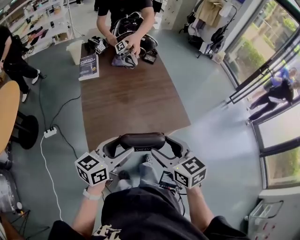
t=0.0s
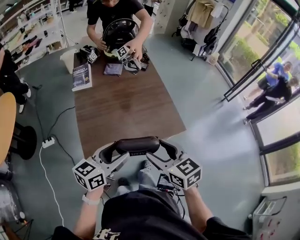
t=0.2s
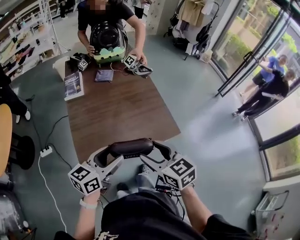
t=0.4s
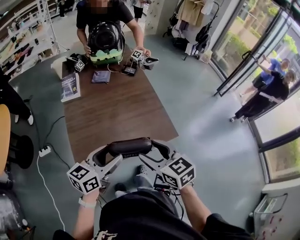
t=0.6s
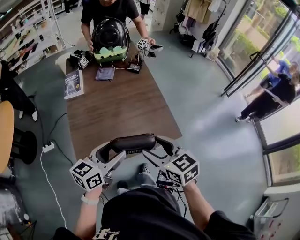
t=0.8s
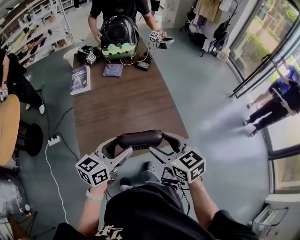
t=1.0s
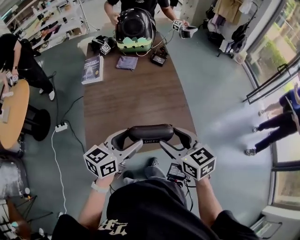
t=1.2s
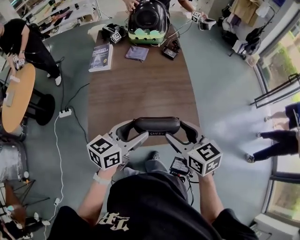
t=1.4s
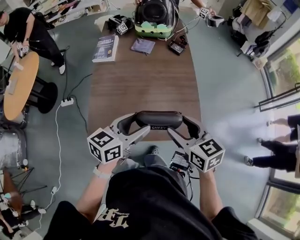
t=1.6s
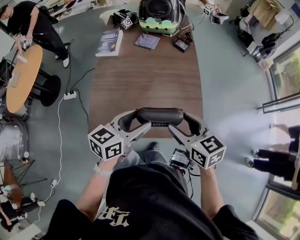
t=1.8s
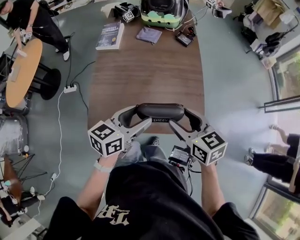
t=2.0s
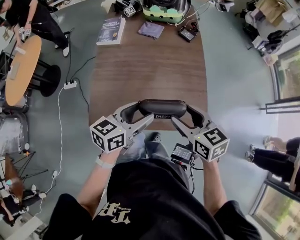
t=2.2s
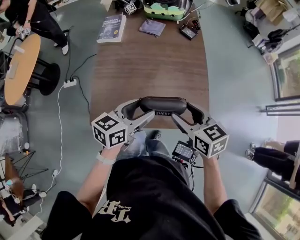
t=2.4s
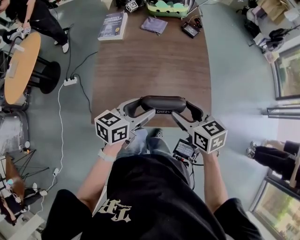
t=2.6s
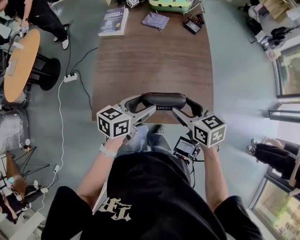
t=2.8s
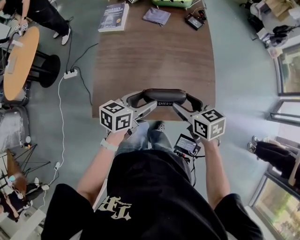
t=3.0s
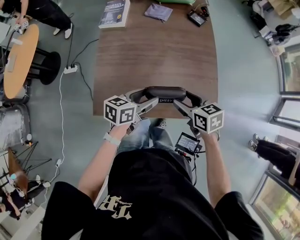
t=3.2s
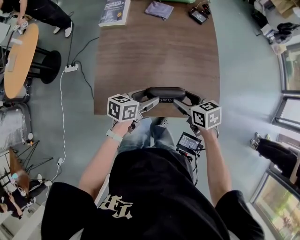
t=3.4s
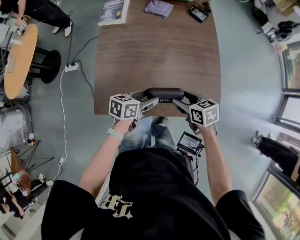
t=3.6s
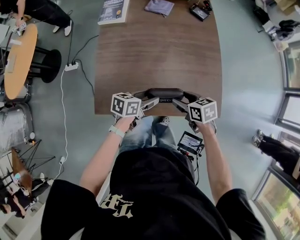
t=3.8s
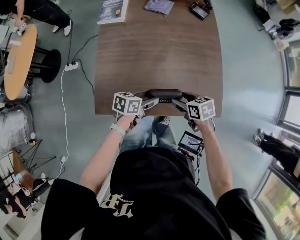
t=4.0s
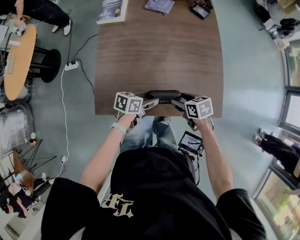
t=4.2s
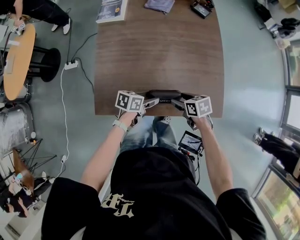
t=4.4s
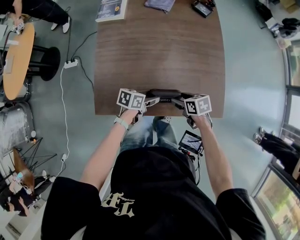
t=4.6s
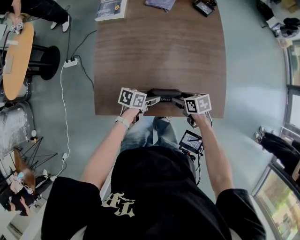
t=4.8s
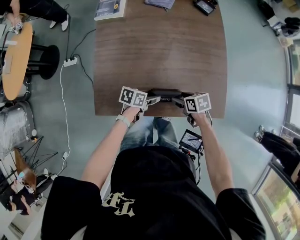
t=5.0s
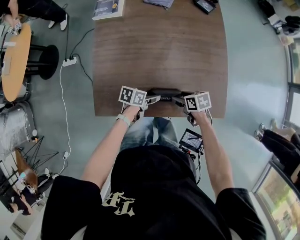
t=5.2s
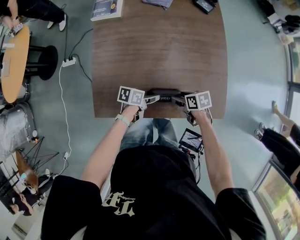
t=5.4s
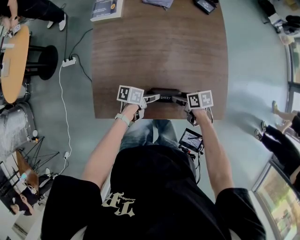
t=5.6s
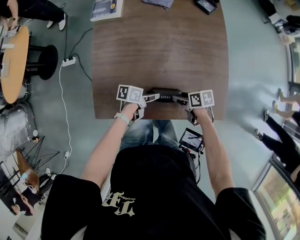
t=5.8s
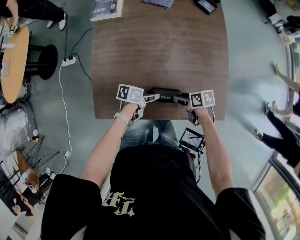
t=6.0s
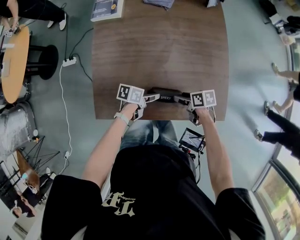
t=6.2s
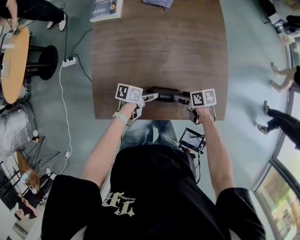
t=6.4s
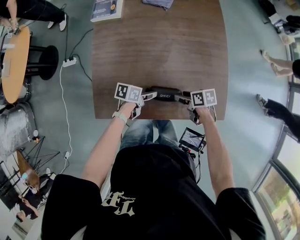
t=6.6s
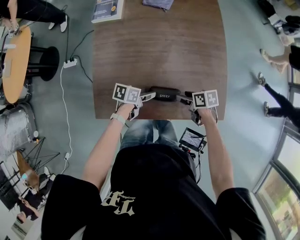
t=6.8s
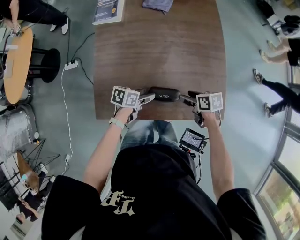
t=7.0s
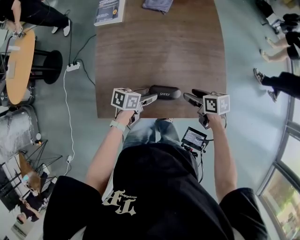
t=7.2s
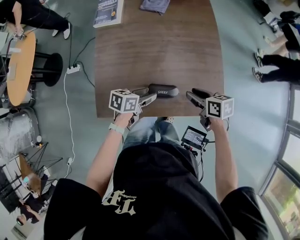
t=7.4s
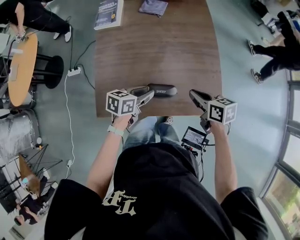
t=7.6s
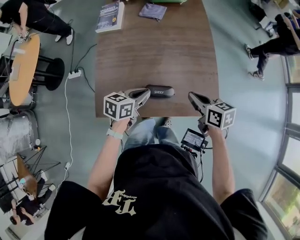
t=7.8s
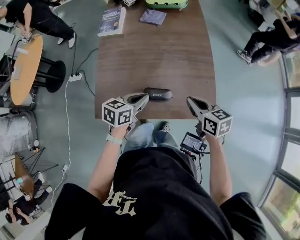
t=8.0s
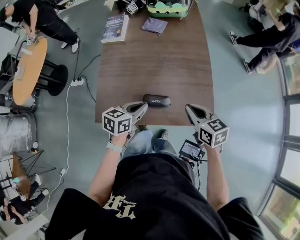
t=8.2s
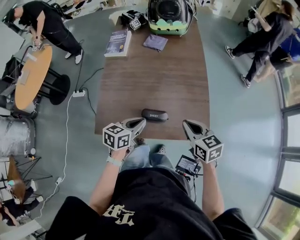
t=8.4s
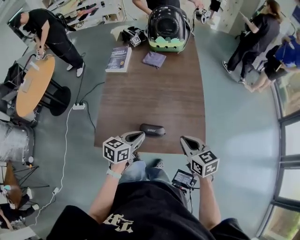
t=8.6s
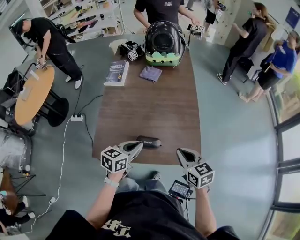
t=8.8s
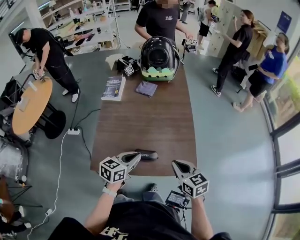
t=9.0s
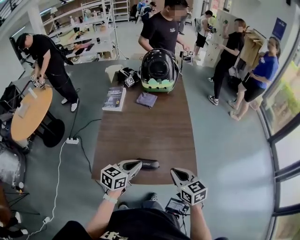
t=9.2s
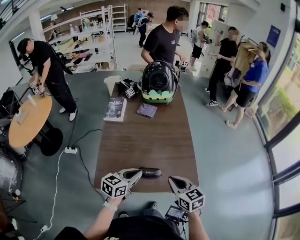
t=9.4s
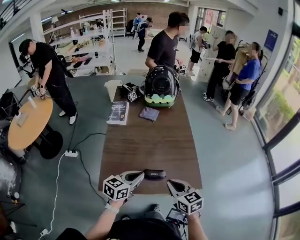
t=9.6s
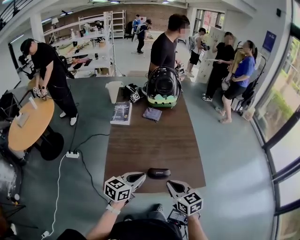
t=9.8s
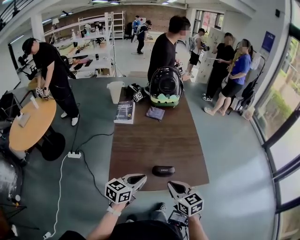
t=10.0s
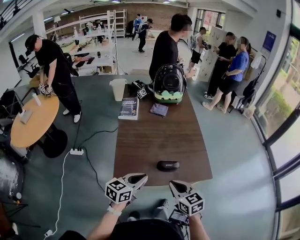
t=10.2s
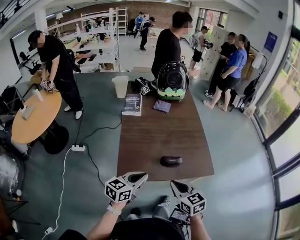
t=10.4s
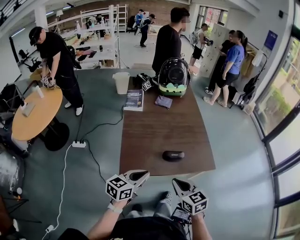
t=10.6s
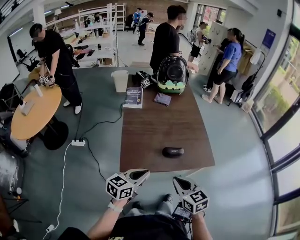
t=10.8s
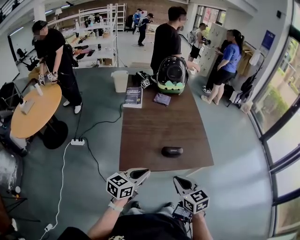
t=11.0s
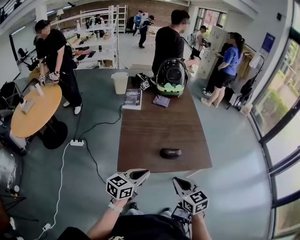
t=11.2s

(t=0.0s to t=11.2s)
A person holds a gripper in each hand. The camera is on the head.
t=0.0s - t=1.6s: The two grippers go about 20 cm forward and to the right.
t=1.6s - t=3.2s: Both grippers travel together downward, about 15 cm.
t=3.2s - t=4.8s: The two grippers go roughly 20 cm downward. The left gripper turns by about 20 degrees; the right gripper rotates roughly 20 degrees.
t=4.8s - t=6.4s: The grippers stay close to where they were, moving slightly.
t=6.4s - t=8.0s: Both grippers travel together upward, about 20 cm. The right gripper changes its angle by roughly 40 degrees, and closes its fingers. Meanwhile the left gripper swivels about 40 degrees, and closes its fingers.
t=8.0s - t=9.6s: The right gripper travels upward, backward and to the left by some 15 cm, while the left gripper moves upward and backward, roughly 15 cm.
t=9.6s - t=11.2s: Both grippers move backward and to the left, some 20 cm.

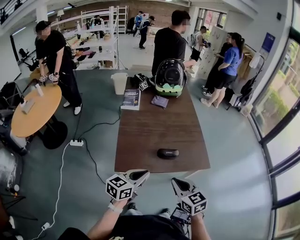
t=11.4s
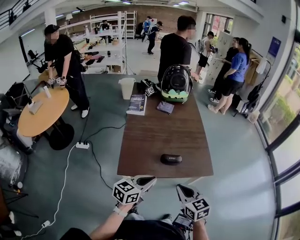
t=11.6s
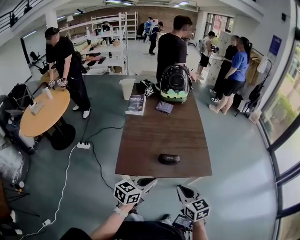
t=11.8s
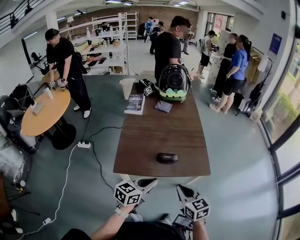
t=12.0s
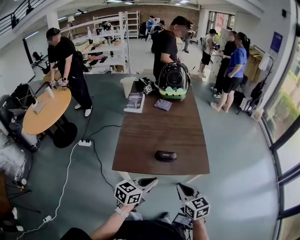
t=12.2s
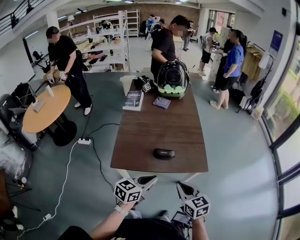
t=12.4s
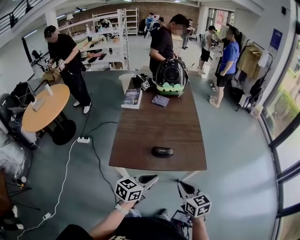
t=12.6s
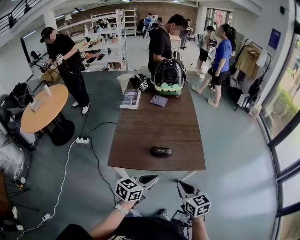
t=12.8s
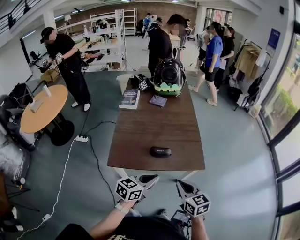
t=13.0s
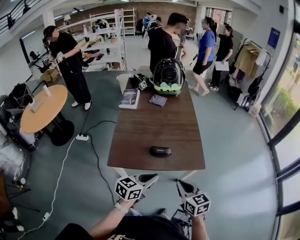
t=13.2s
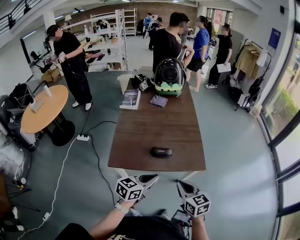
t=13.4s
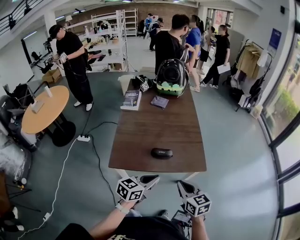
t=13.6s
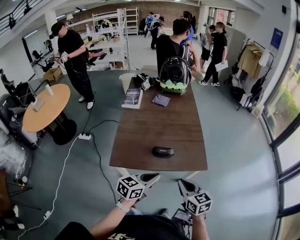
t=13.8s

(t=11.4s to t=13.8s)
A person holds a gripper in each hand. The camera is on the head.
t=11.4s - t=12.6s: The two grippers go roughly 15 cm to the right.
t=12.6s - t=13.8s: Both grippers stay about where they are.

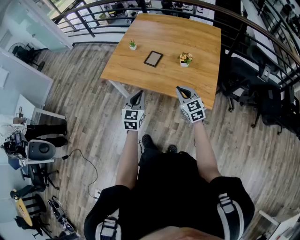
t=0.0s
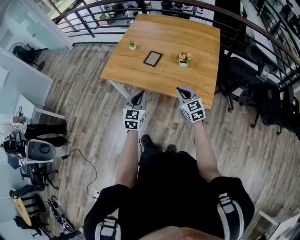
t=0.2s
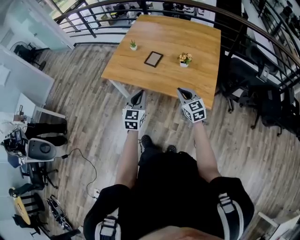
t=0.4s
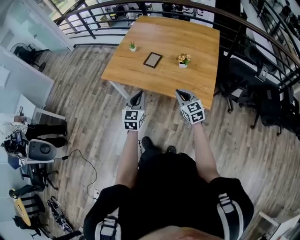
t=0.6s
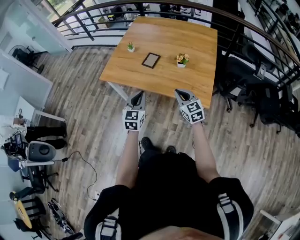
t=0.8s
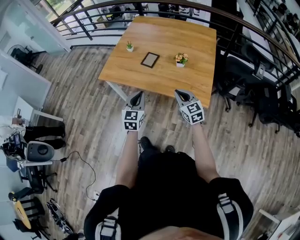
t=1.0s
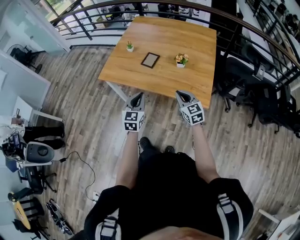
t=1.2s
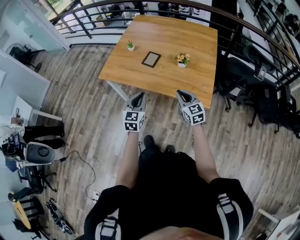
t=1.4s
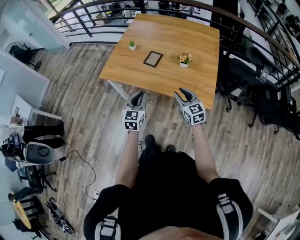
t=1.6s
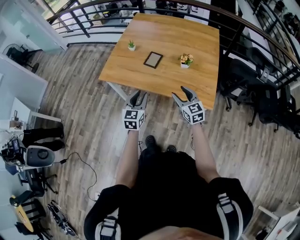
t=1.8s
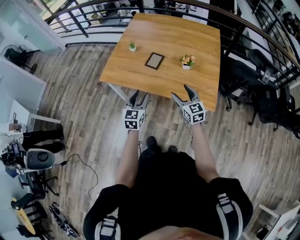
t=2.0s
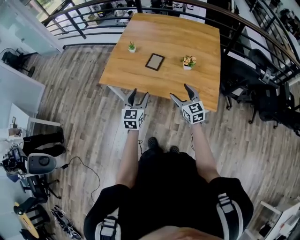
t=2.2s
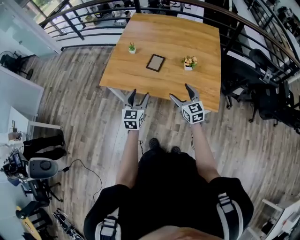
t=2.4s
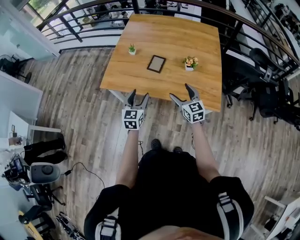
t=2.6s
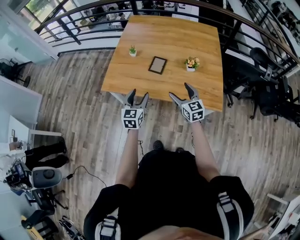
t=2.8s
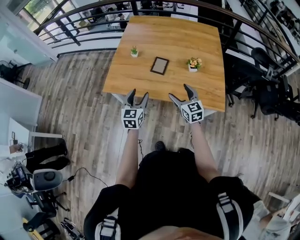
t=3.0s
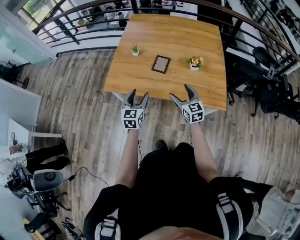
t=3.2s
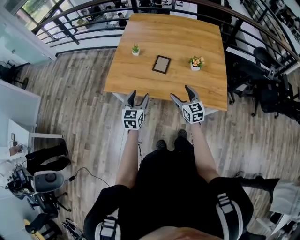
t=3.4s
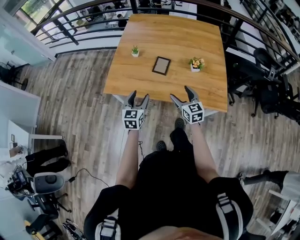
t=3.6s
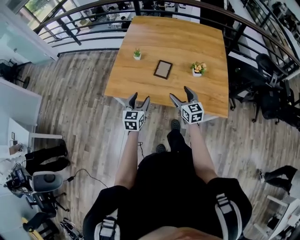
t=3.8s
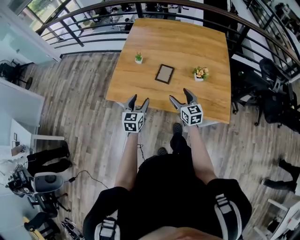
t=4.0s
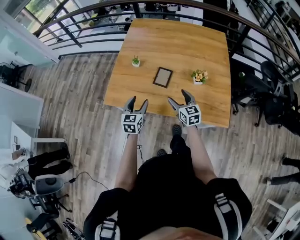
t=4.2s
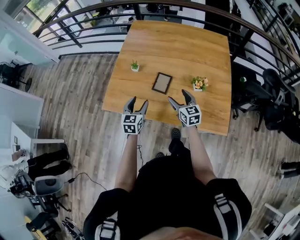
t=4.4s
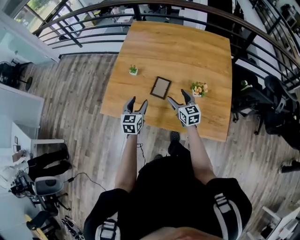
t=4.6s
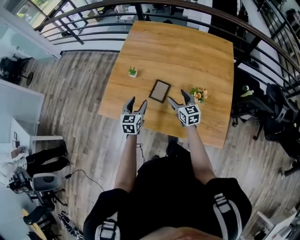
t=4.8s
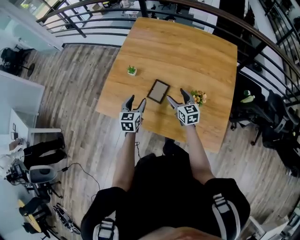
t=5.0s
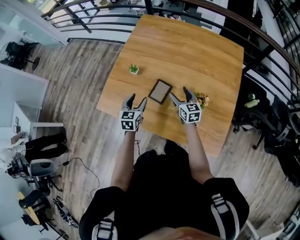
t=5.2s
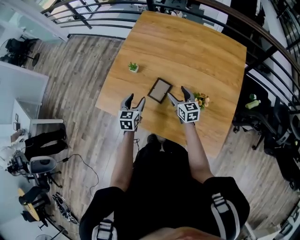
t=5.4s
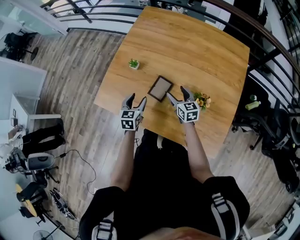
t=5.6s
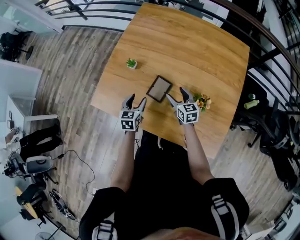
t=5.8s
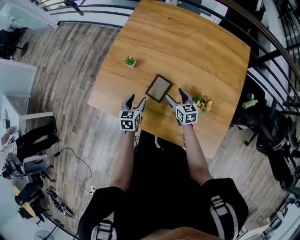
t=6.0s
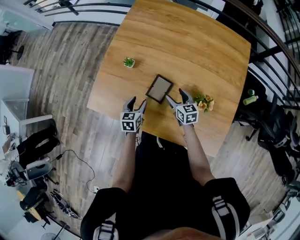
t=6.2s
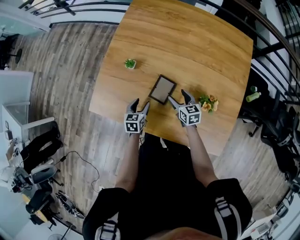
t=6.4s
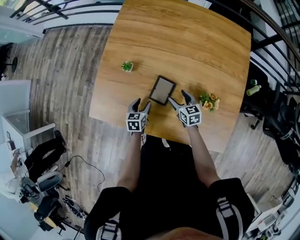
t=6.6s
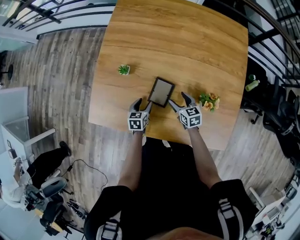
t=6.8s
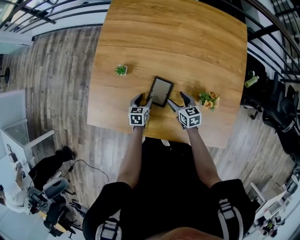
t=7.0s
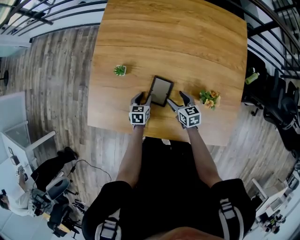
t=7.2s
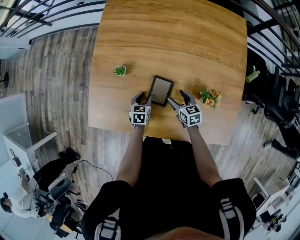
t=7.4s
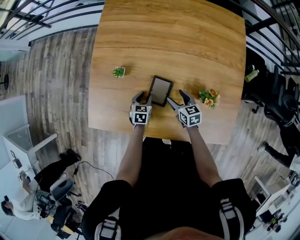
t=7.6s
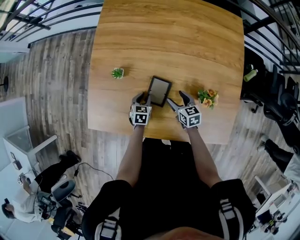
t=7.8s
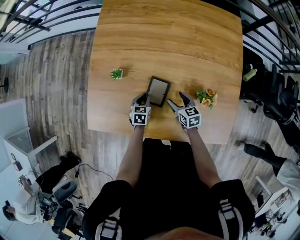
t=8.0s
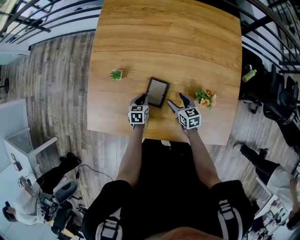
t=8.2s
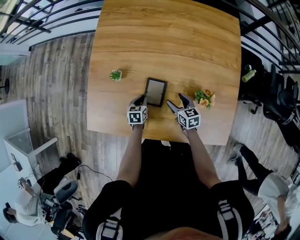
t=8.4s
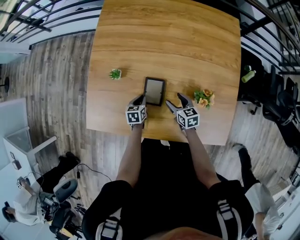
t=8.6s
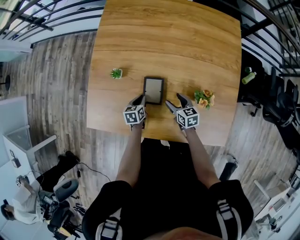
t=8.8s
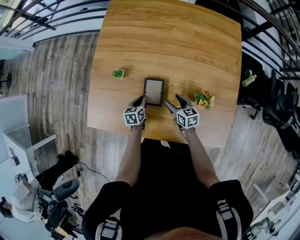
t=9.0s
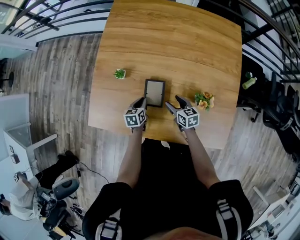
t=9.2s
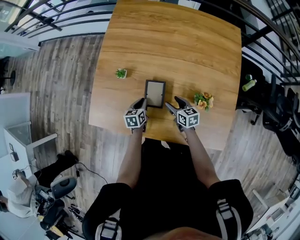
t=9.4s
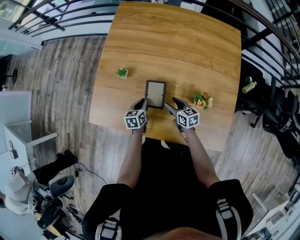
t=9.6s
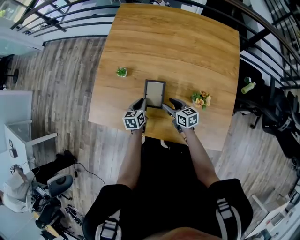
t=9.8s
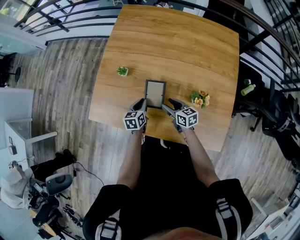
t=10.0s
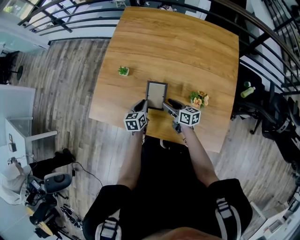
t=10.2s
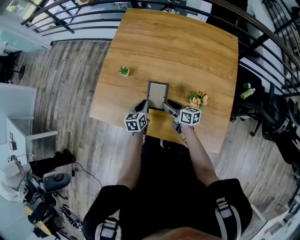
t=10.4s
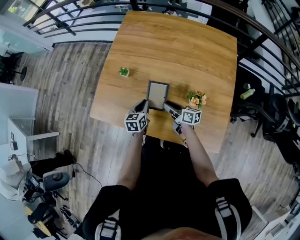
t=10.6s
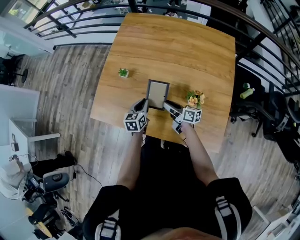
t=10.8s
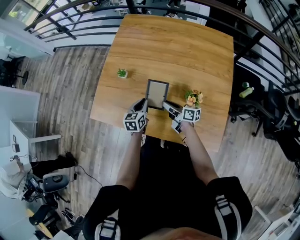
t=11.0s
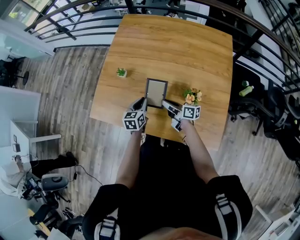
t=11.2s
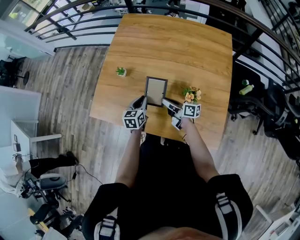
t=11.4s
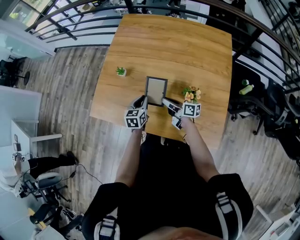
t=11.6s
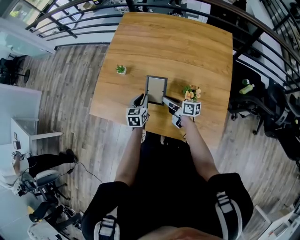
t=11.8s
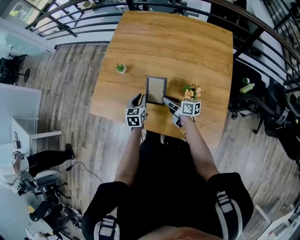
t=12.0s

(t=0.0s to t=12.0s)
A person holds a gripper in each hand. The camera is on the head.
t=0.0s - t=1.6s: The grippers make only small movements.
t=1.6s - t=3.0s: The left gripper heads forward and to the left, covering approximately 15 cm, and opens, while the right gripper is displaced to the left and forward by some 15 cm, and opens up.
t=3.0s - t=4.4s: Both grippers move forward, some 15 cm.
t=4.4s - t=6.0s: Both grippers move forward and downward, some 15 cm.
t=6.0s - t=7.6s: The left gripper shifts roughly 15 cm downward and forward, and rotates roughly 20 degrees. The right gripper moves downward, approximately 5 cm.
t=7.6s - t=9.0s: The left gripper rotates some 20 degrees, and closes.
t=9.0s - t=10.4s: The right gripper shifts roughly 5 cm upward, and rotates approximately 30 degrees. The left gripper goes some 10 cm upward and backward.
t=10.4s - t=12.0s: The right gripper closes up.
